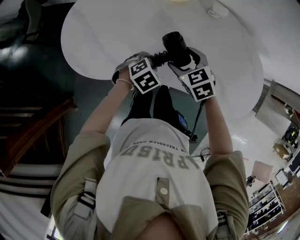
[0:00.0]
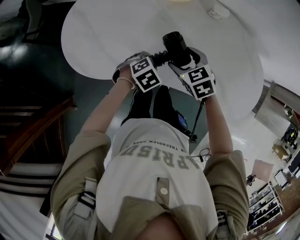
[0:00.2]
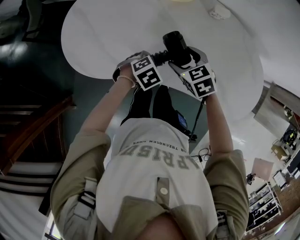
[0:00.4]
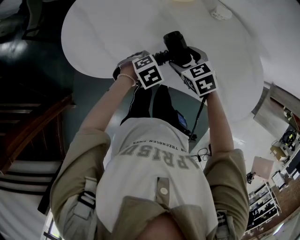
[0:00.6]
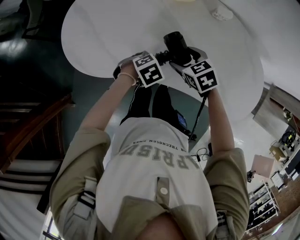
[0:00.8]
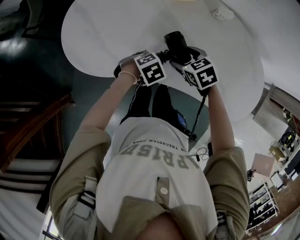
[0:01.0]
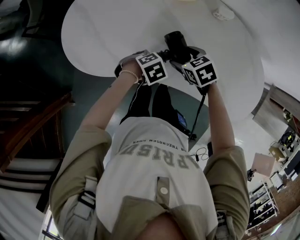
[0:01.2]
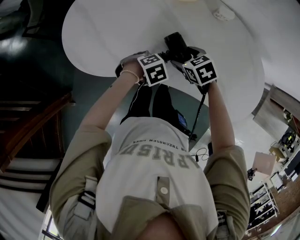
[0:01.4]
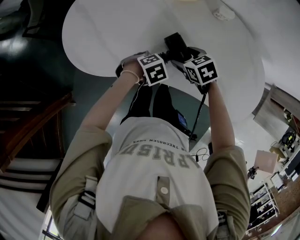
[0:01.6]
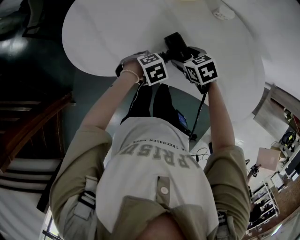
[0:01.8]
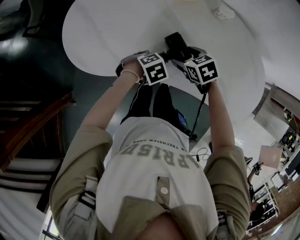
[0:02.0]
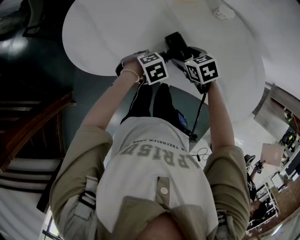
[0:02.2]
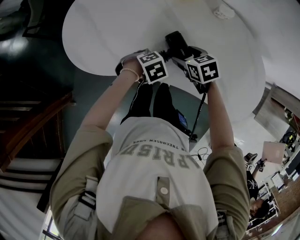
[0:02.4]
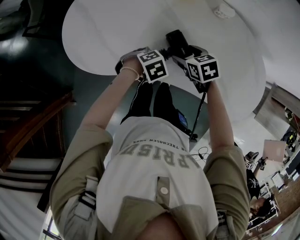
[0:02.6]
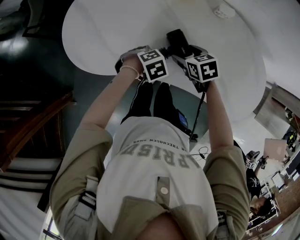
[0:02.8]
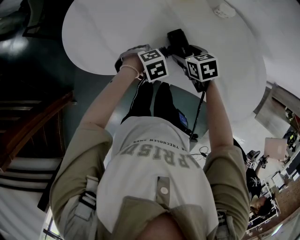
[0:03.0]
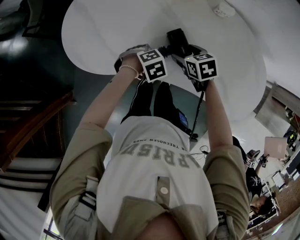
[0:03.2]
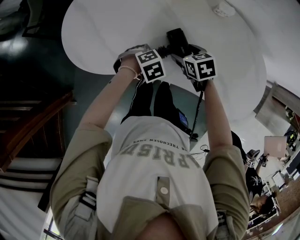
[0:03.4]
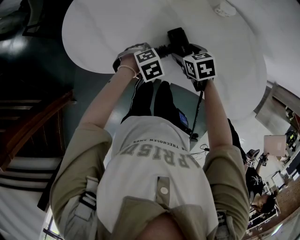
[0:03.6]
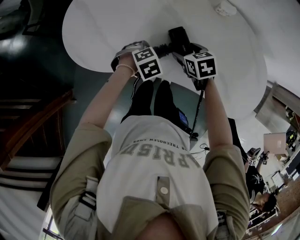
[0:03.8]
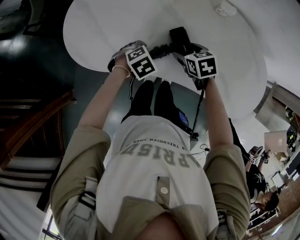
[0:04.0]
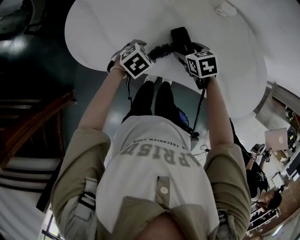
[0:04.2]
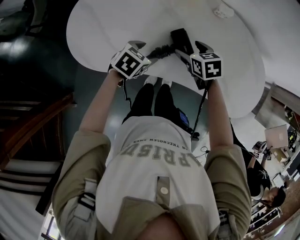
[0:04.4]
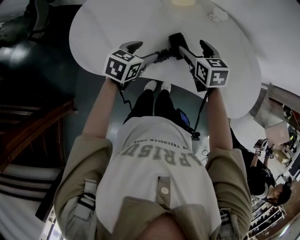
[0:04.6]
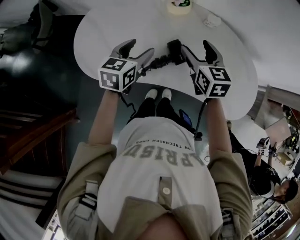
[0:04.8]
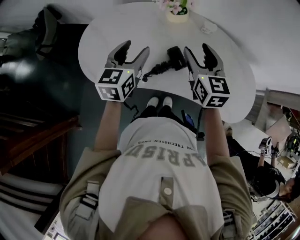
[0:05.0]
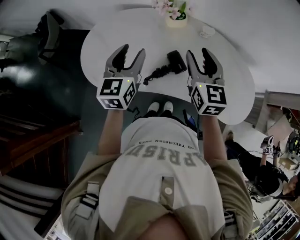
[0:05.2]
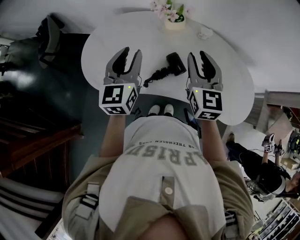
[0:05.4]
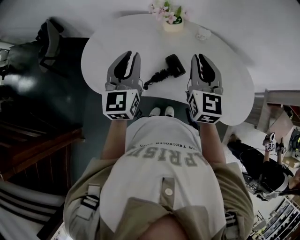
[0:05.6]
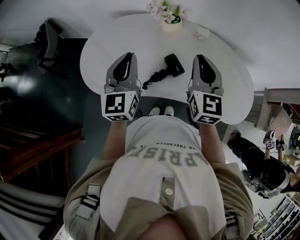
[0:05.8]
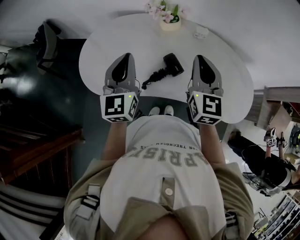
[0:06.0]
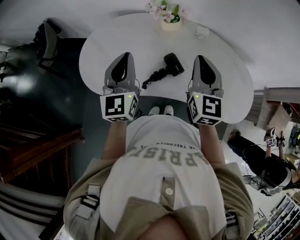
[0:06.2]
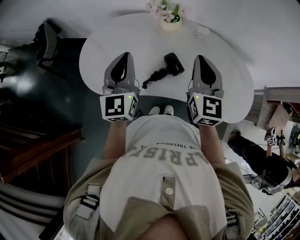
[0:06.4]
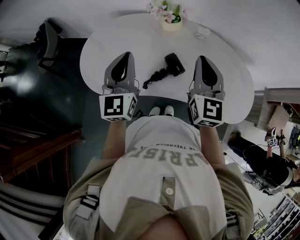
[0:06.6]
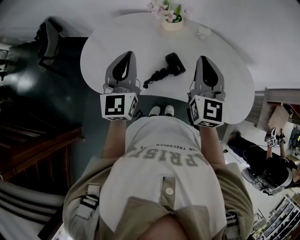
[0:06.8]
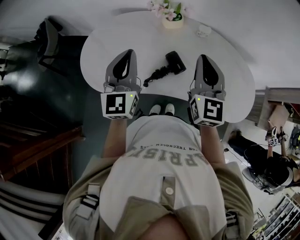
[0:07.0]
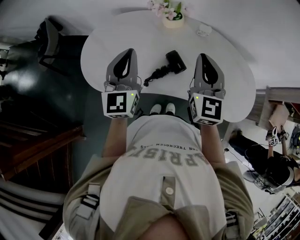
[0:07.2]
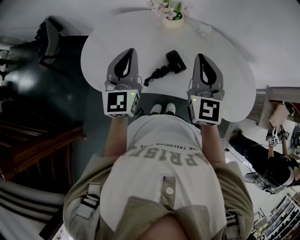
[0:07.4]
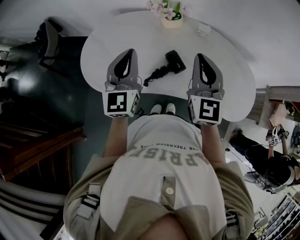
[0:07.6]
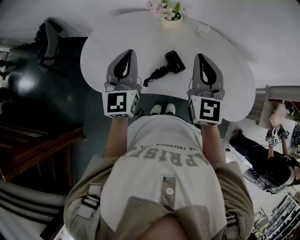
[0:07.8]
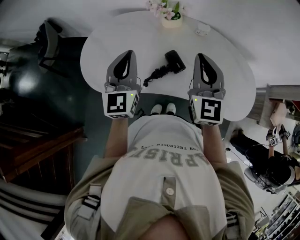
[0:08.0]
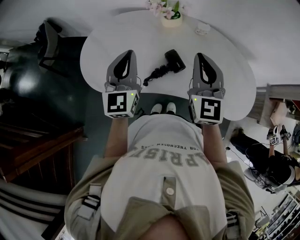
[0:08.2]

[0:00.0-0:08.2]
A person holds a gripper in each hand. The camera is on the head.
0:00.0 to 0:01.6: The right gripper is displaced downward by approximately 5 cm.
0:01.6 to 0:03.2: The grippers move only a little.
0:03.2 to 0:05.0: The grippers both shift upward by some 30 cm. The left gripper points its fingers about 60 degrees further upward, while the right gripper points its fingers approximately 40 degrees further upward.
0:05.0 to 0:06.6: The left gripper heads upward, covering some 10 cm, turns by about 30 degrees, and closes its fingers. Meanwhile the right gripper heads upward and backward, covering some 10 cm, rotates roughly 20 degrees, and closes up.
0:06.6 to 0:08.2: The grippers make only small movements.

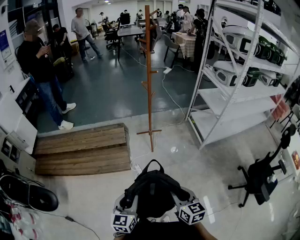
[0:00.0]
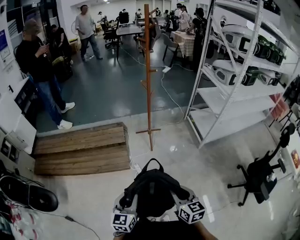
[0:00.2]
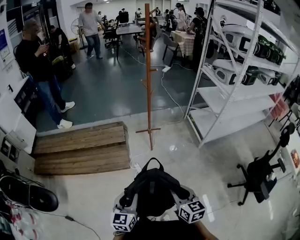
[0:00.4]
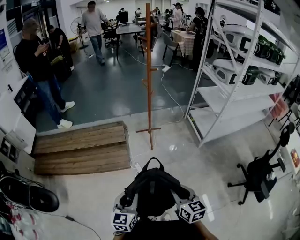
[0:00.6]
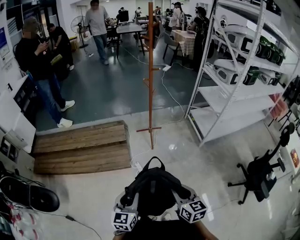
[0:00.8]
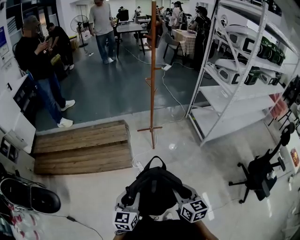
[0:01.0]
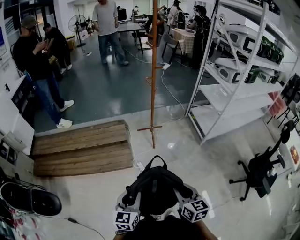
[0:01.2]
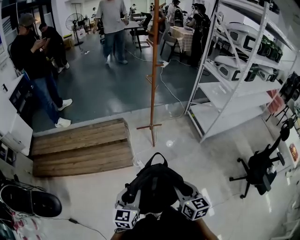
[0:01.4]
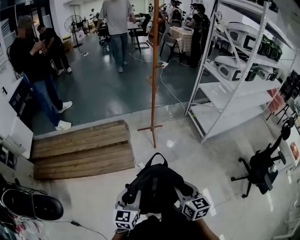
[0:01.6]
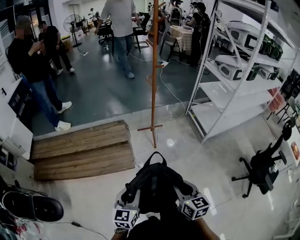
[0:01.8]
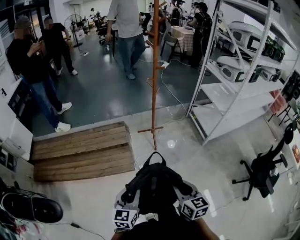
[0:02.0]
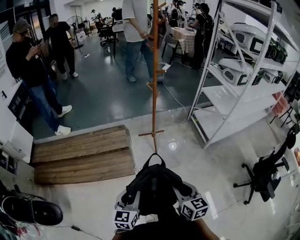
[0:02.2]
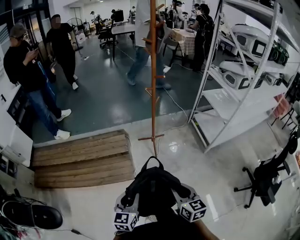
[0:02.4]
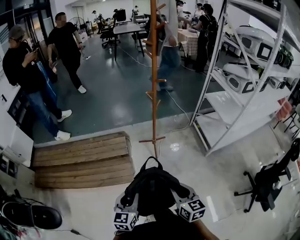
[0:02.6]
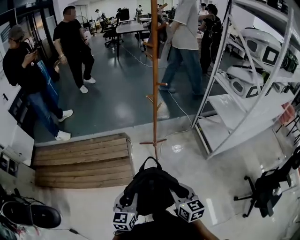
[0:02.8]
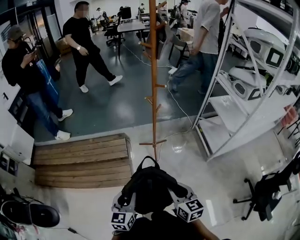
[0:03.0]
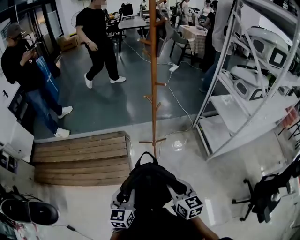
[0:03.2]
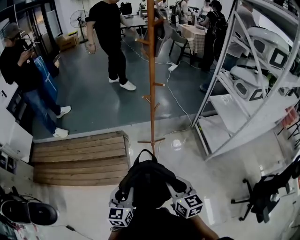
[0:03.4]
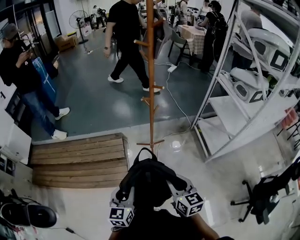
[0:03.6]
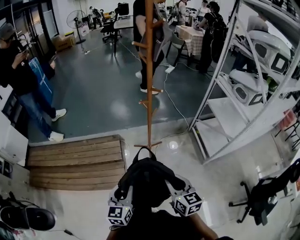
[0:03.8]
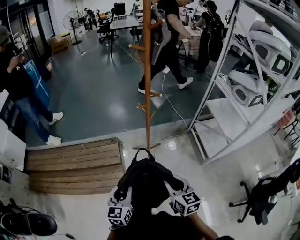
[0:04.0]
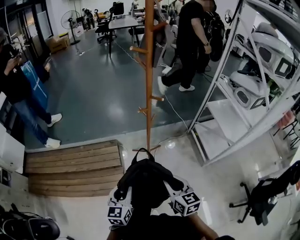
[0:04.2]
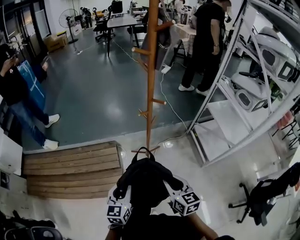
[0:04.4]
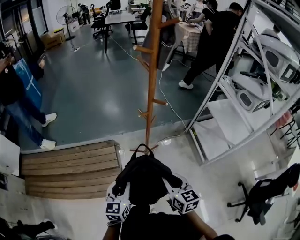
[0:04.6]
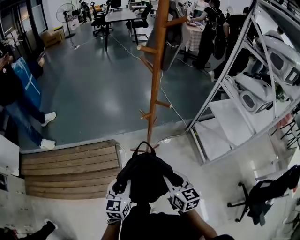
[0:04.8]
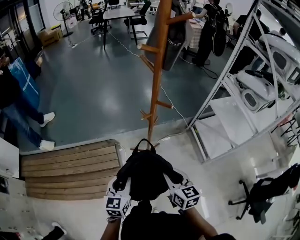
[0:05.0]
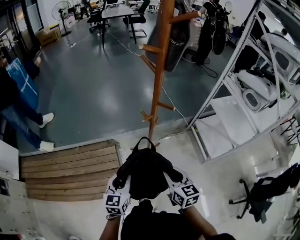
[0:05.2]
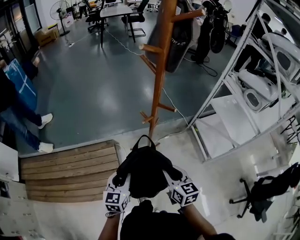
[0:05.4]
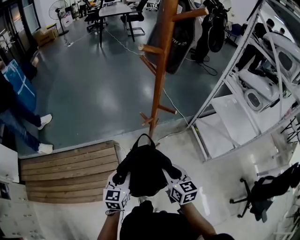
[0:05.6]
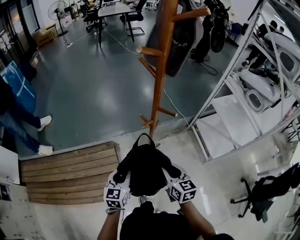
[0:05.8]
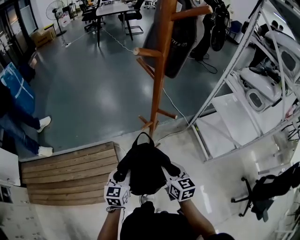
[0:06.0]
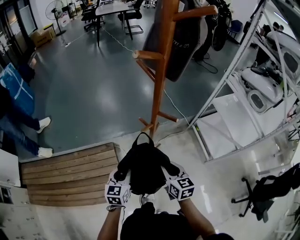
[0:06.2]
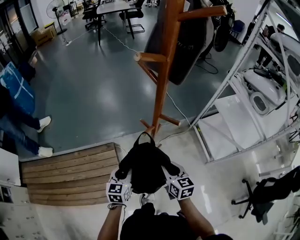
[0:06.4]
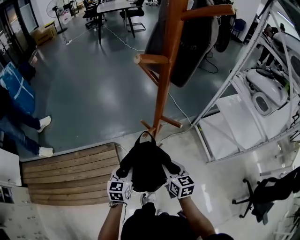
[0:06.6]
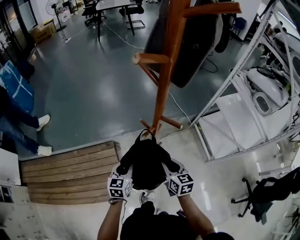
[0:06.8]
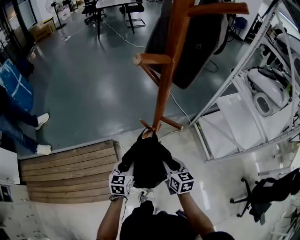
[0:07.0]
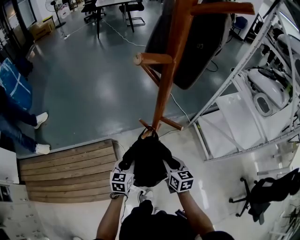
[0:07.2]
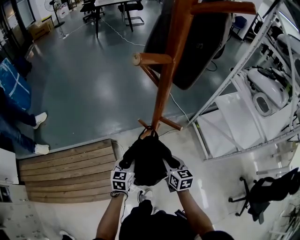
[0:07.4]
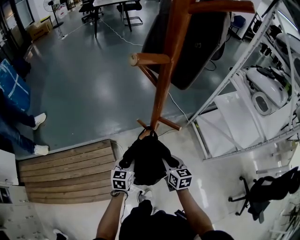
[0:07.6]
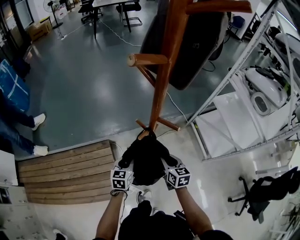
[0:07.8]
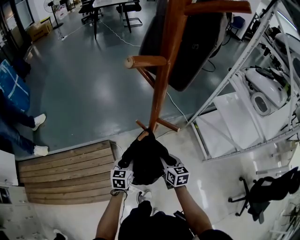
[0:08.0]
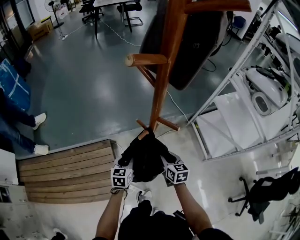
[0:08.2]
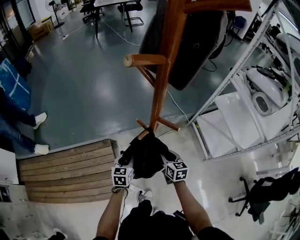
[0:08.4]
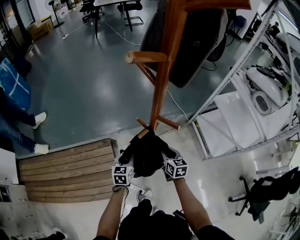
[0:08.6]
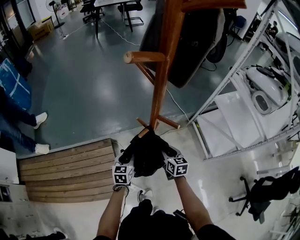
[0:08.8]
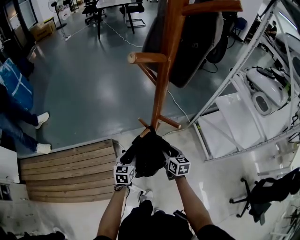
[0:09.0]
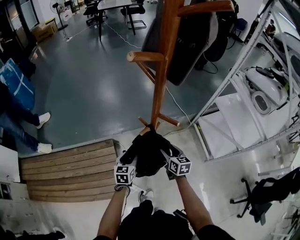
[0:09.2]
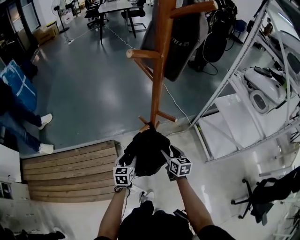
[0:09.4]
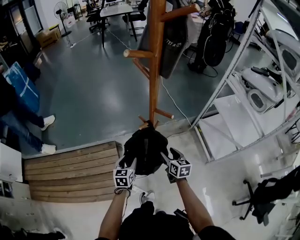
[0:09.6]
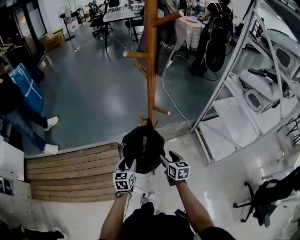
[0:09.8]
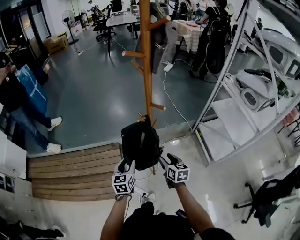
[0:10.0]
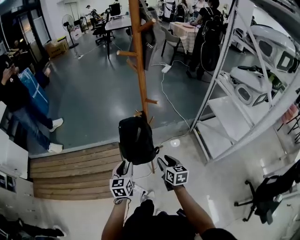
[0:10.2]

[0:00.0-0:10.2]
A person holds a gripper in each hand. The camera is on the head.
0:00.0 to 0:01.4: The two grippers go approximately 10 cm to the left.
0:01.4 to 0:03.0: The two grippers go approximately 25 cm forward.
0:03.0 to 0:04.4: Both grippers move forward, approximately 20 cm.
0:04.4 to 0:05.8: The two grippers go some 20 cm forward.
0:05.8 to 0:07.2: Both grippers travel together forward and downward, about 15 cm.
0:07.2 to 0:08.8: The right gripper goes approximately 10 cm downward and forward, while the left gripper shifts by some 5 cm.
0:08.8 to 0:10.2: Both grippers travel together backward and upward, roughly 25 cm.

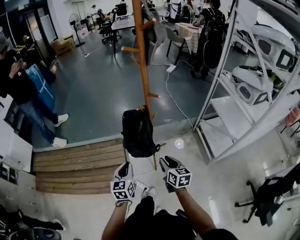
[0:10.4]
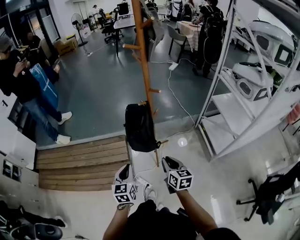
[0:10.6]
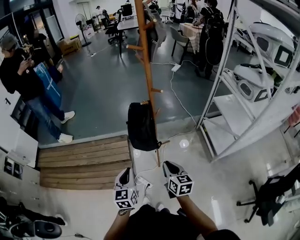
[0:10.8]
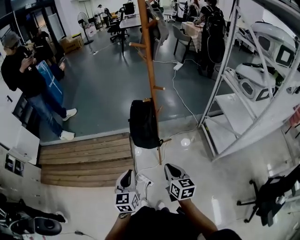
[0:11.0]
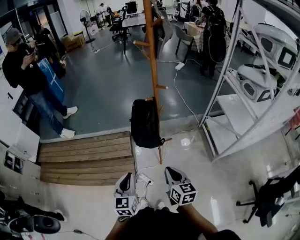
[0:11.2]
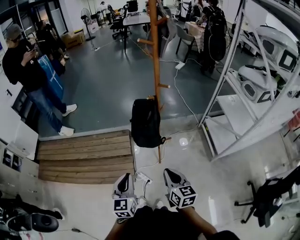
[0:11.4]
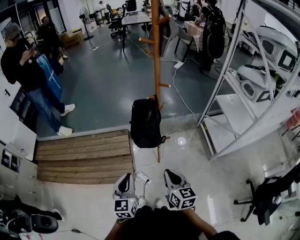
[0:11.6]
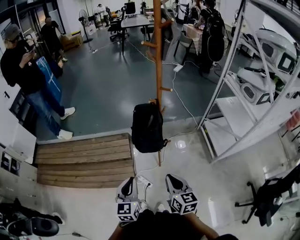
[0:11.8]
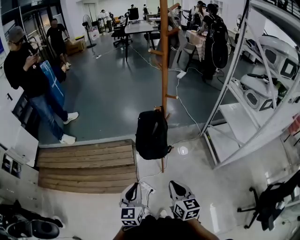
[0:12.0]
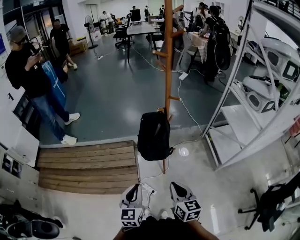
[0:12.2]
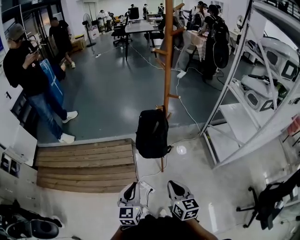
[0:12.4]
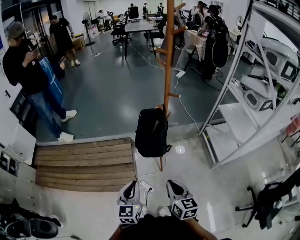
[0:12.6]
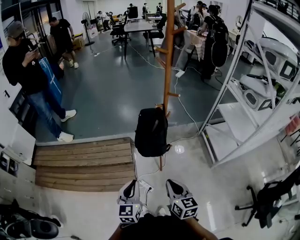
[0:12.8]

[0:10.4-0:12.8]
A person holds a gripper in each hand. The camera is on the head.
0:10.4 to 0:11.6: The left gripper moves backward and upward, approximately 15 cm; the right gripper heads backward, to the left and upward, covering approximately 20 cm, and closes.
0:11.6 to 0:12.8: The grippers stay close to where they were, moving slightly.

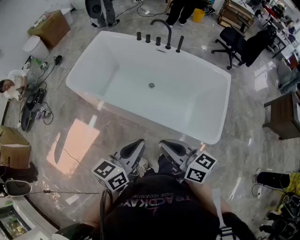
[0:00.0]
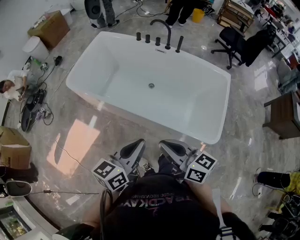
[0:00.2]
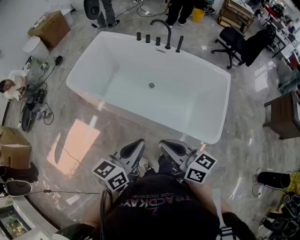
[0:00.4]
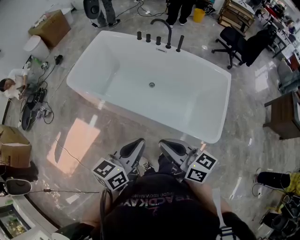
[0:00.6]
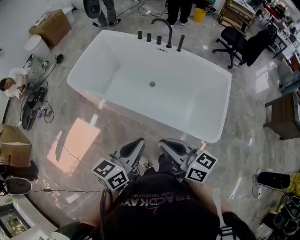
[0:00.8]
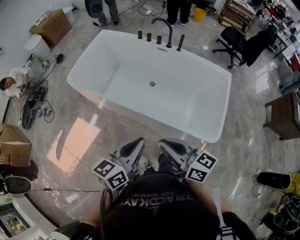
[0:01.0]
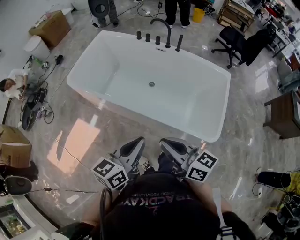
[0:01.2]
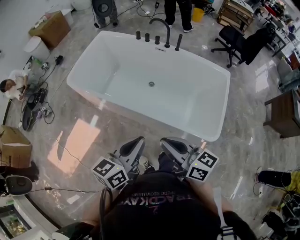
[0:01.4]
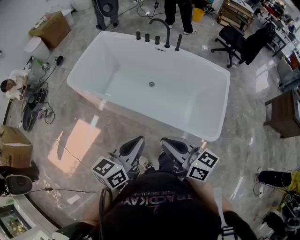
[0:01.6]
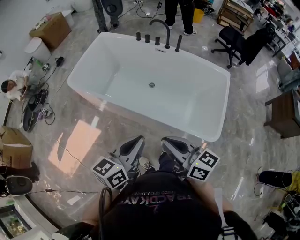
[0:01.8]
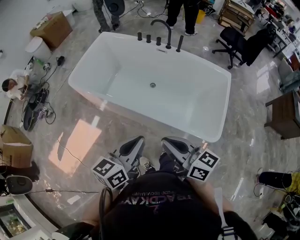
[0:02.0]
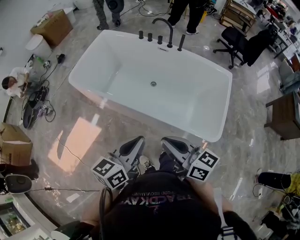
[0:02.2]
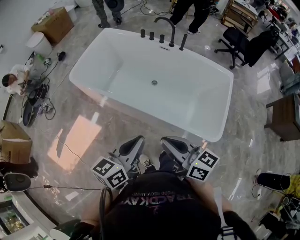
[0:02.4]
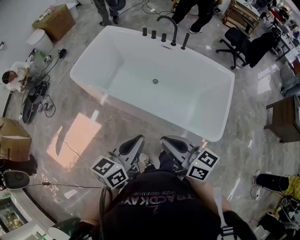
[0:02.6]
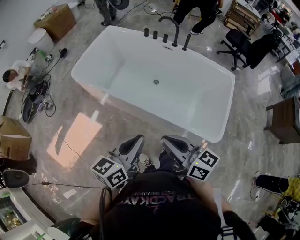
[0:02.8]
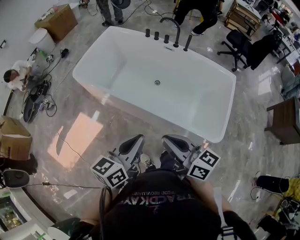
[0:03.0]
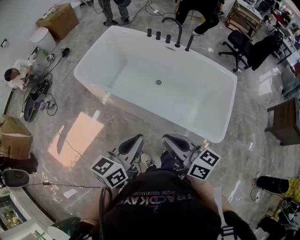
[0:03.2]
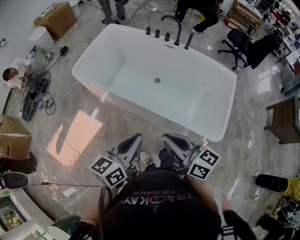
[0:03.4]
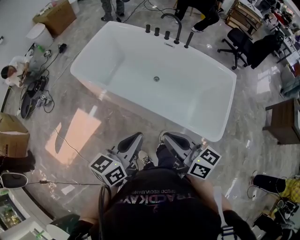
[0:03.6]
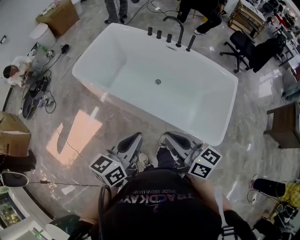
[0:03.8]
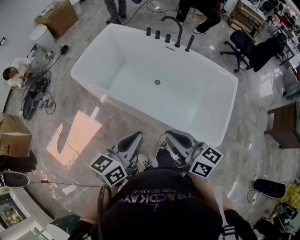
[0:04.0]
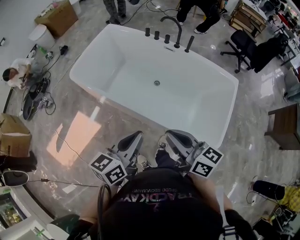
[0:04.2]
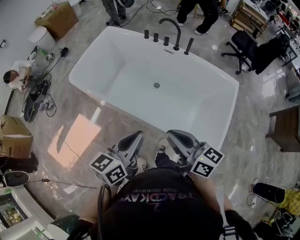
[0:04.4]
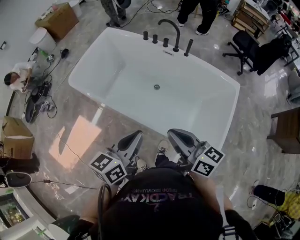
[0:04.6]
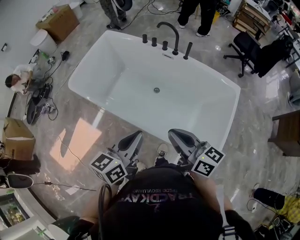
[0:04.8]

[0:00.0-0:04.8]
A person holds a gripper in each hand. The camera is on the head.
0:00.0 to 0:03.2: There are only small adjustments of the grippers.
0:03.2 to 0:04.8: The two grippers go about 15 cm forward and to the right.
